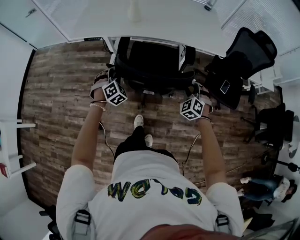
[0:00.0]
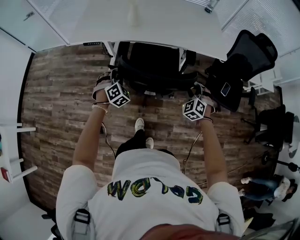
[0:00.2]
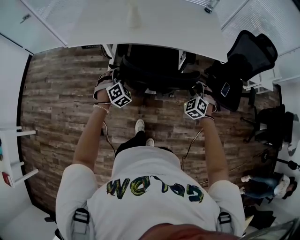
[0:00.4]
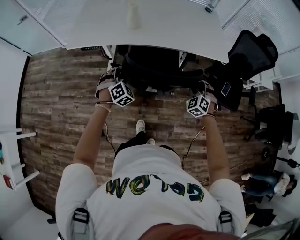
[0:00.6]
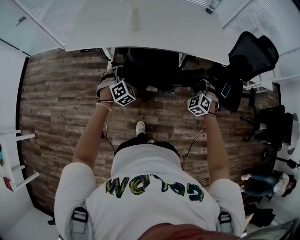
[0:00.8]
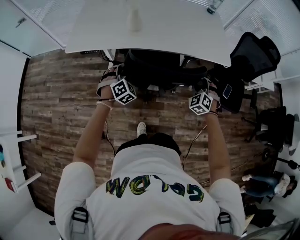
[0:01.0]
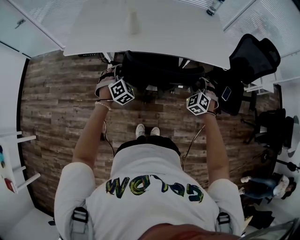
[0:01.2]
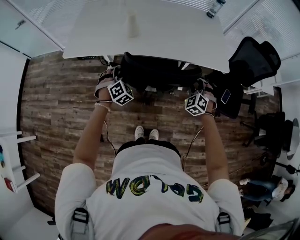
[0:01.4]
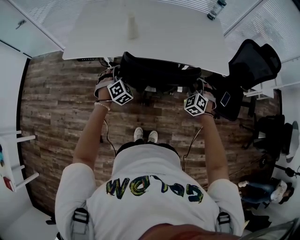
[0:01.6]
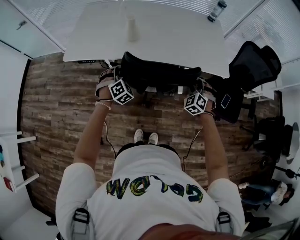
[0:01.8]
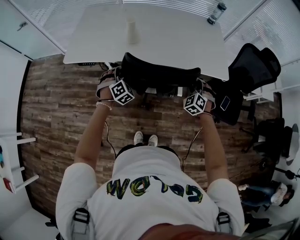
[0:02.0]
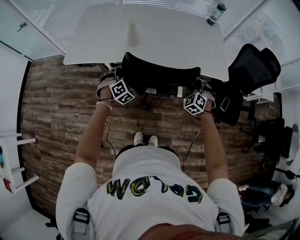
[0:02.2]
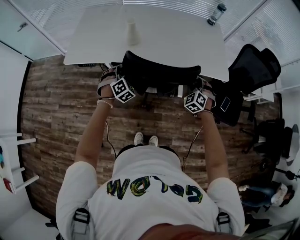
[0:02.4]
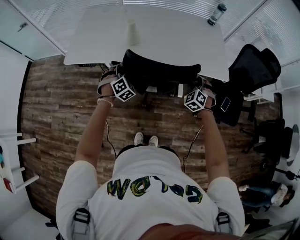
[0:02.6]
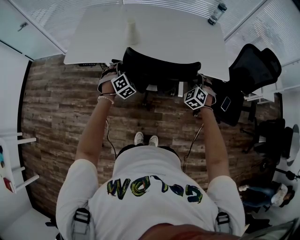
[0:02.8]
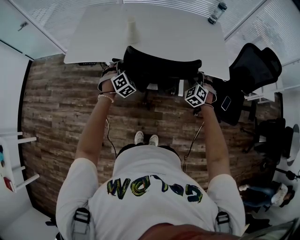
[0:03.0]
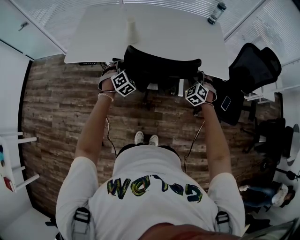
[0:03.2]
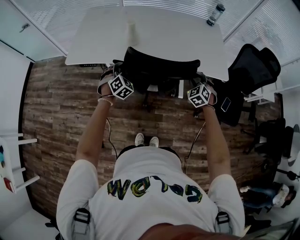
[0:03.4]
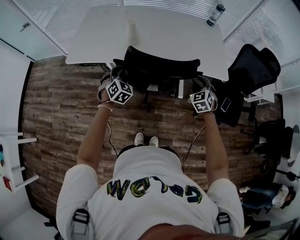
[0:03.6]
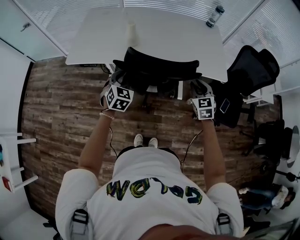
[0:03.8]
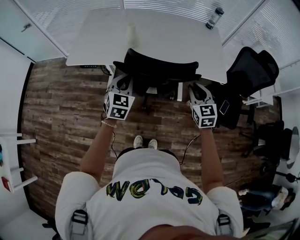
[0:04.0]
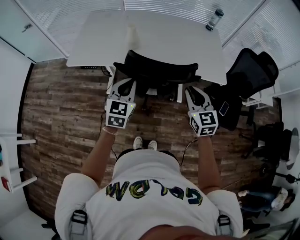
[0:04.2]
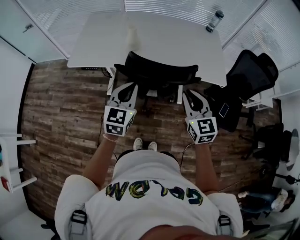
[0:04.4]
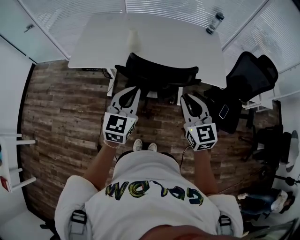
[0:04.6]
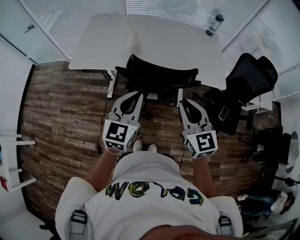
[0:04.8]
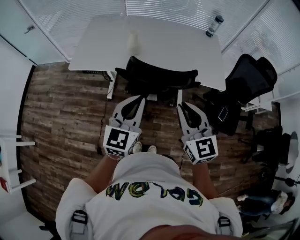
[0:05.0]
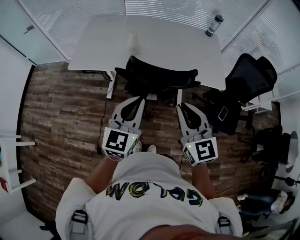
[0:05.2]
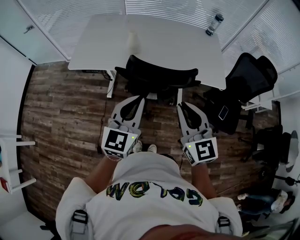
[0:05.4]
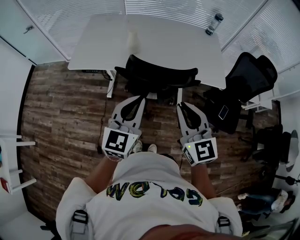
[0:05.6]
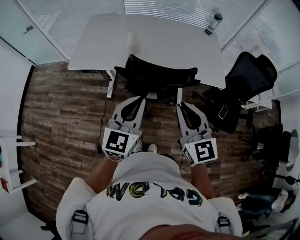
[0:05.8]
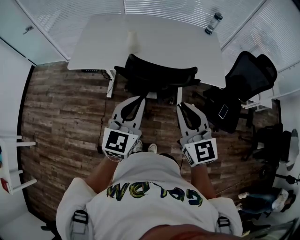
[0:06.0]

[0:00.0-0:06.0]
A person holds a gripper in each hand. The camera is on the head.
0:00.0 to 0:01.6: Both grippers travel together forward, about 20 cm.
0:01.6 to 0:03.0: Both grippers travel together forward, approximately 5 cm.
0:03.0 to 0:04.4: The right gripper is displaced upward, backward and to the left by some 25 cm, rotates around the line of its fingers by some 50 degrees, clockwise from behind, and closes up. The left gripper is displaced upward and backward by roughly 25 cm, and rotates around the line of its fingers by some 50 degrees, counterclockwise from behind.
0:04.4 to 0:06.0: The grippers both shift upward and backward by some 10 cm.

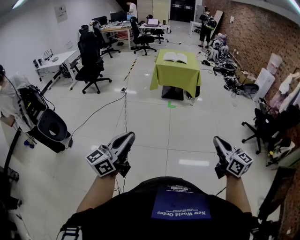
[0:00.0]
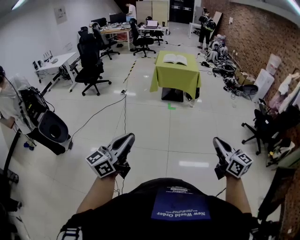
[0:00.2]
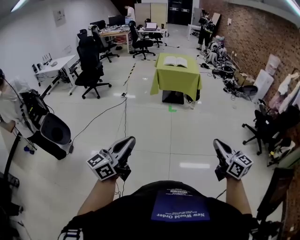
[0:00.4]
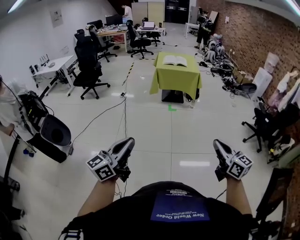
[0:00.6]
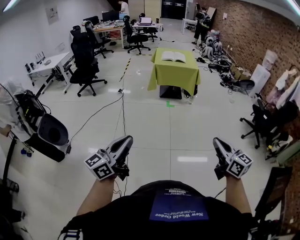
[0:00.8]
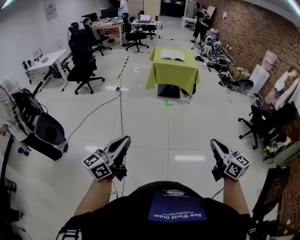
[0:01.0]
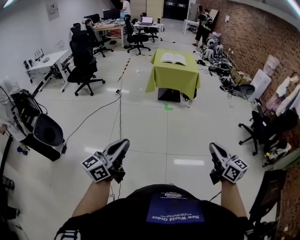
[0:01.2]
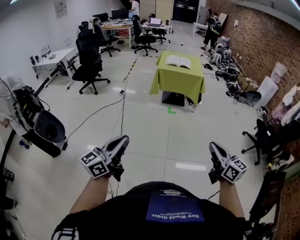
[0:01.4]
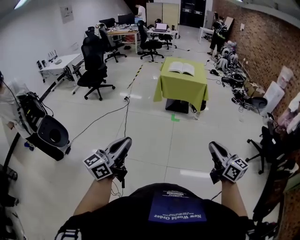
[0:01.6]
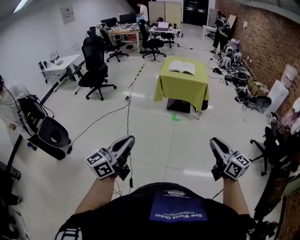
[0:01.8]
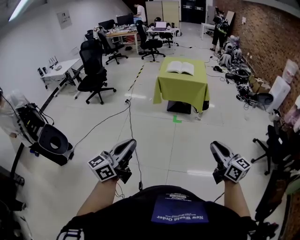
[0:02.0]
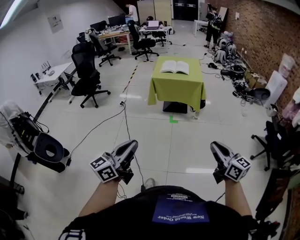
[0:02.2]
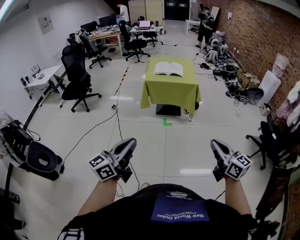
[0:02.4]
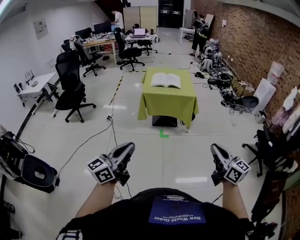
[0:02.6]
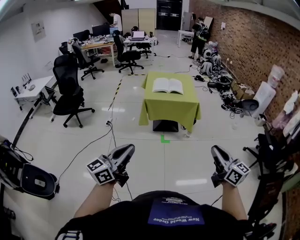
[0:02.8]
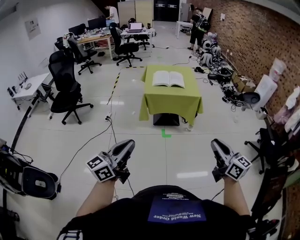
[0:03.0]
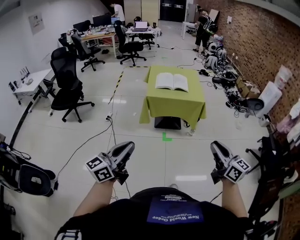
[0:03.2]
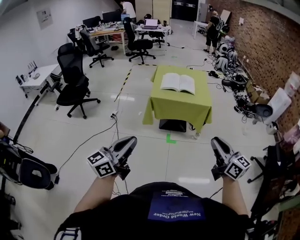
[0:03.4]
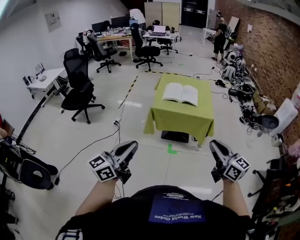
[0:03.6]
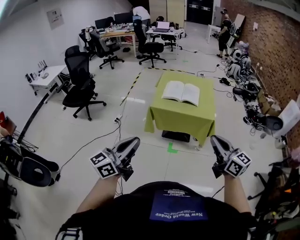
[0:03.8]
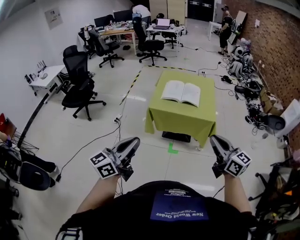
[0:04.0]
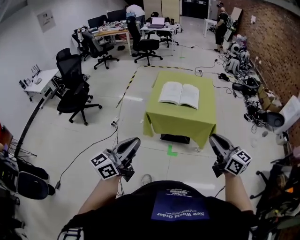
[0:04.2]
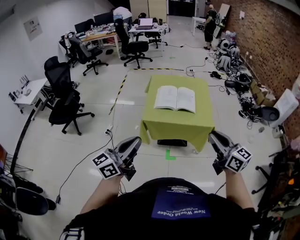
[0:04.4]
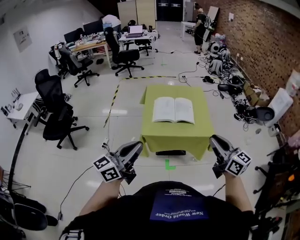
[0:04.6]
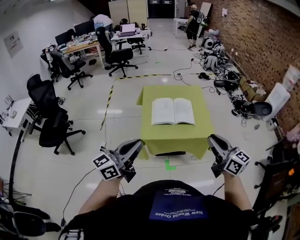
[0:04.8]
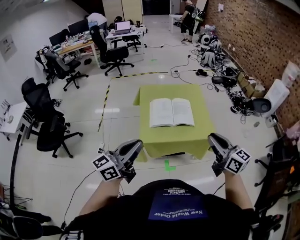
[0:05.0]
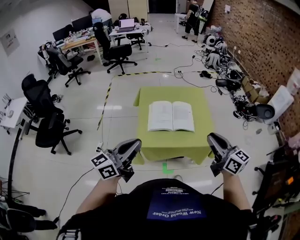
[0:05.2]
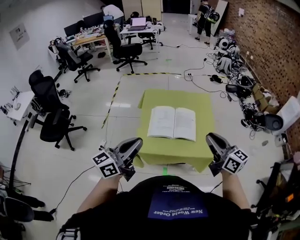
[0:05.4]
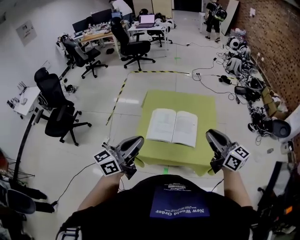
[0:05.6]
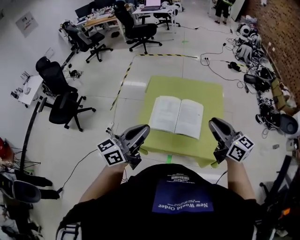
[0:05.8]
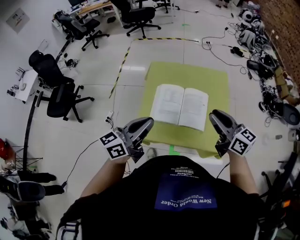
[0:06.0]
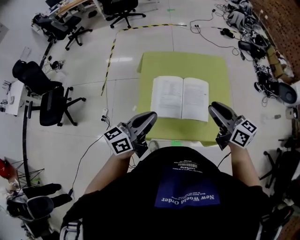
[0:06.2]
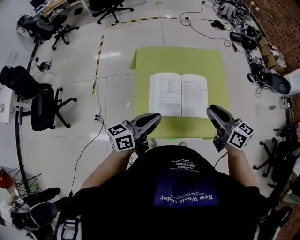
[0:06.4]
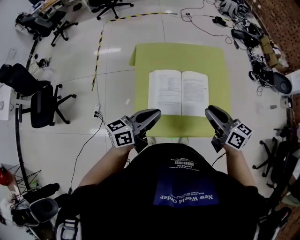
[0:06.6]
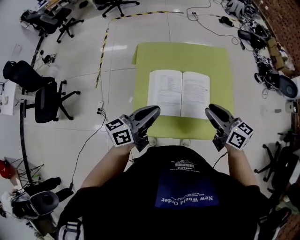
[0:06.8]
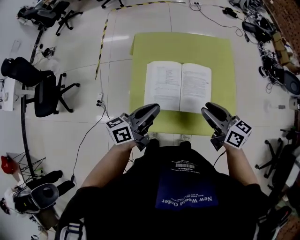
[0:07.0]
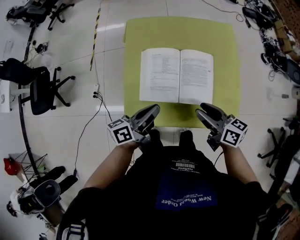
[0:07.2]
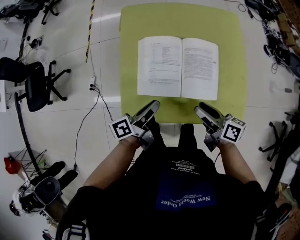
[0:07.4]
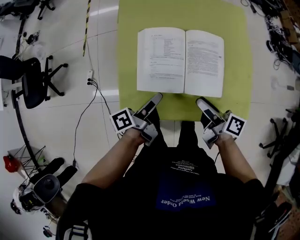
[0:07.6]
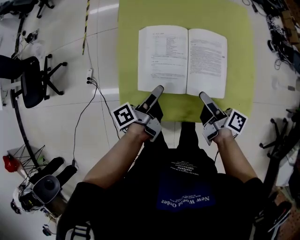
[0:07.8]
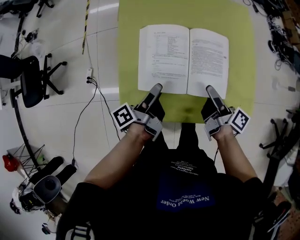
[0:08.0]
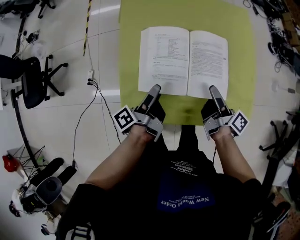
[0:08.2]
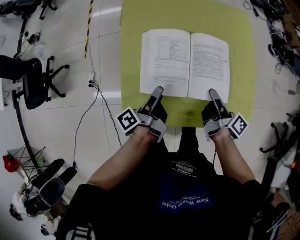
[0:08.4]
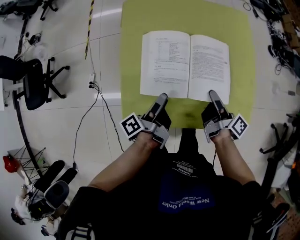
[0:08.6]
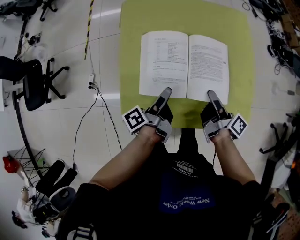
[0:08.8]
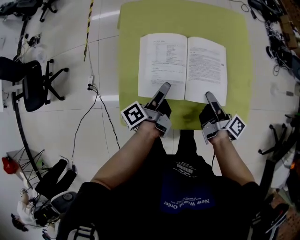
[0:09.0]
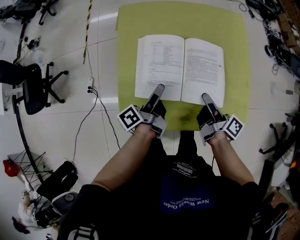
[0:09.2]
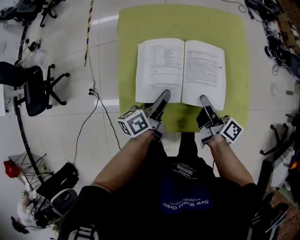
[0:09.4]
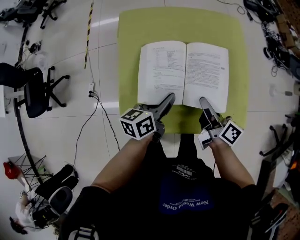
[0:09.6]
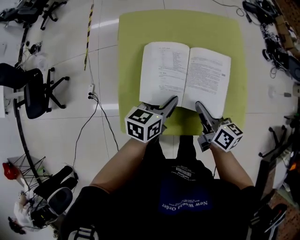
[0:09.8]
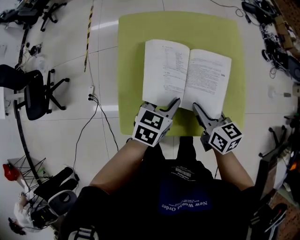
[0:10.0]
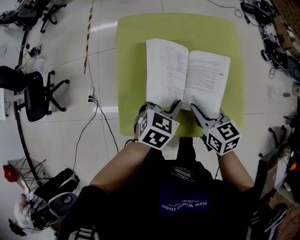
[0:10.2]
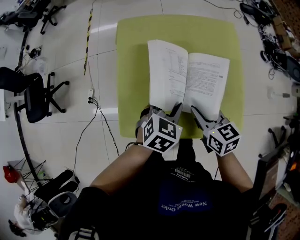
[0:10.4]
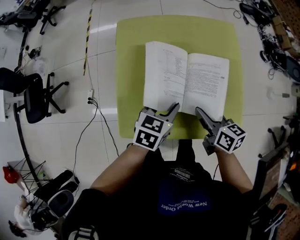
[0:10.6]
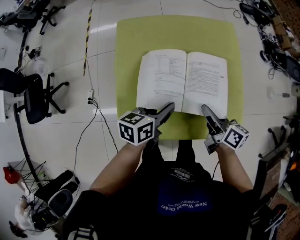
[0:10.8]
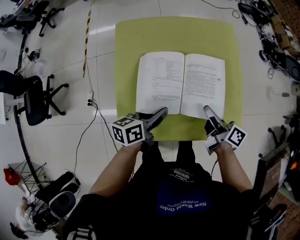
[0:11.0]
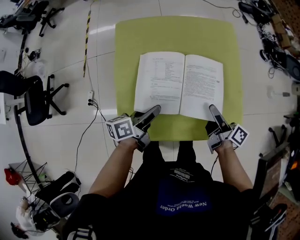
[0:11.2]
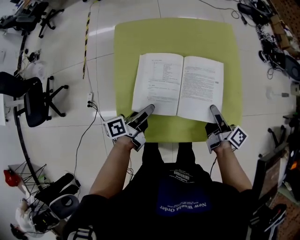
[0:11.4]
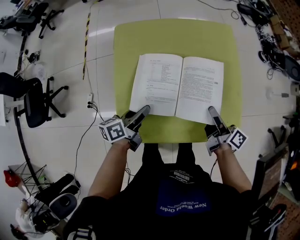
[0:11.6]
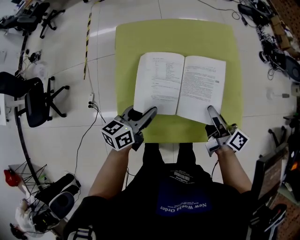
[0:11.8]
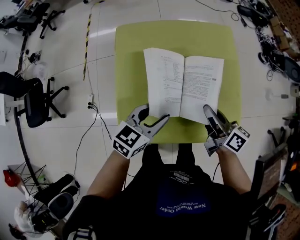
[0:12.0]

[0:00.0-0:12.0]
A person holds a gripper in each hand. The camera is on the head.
0:00.0 to 0:01.6: The grippers both shift forward by approximately 20 cm.
0:01.6 to 0:03.0: Both grippers travel together forward, some 40 cm.
0:03.0 to 0:04.4: The pair of grippers is taken forward, about 40 cm.
0:04.4 to 0:06.0: The two grippers travel together, forward, some 40 cm.
0:06.0 to 0:07.6: Both grippers travel together downward, roughly 30 cm. The left gripper twists approximately 60 degrees counterclockwise, seen from behind, and opens. The right gripper twists some 50 degrees clockwise, seen from behind, and opens.
0:07.6 to 0:09.0: The right gripper changes place by some 5 cm, rotates some 30 degrees, and closes up, while the left gripper travels forward by approximately 5 cm.
0:09.0 to 0:10.4: The left gripper goes roughly 10 cm to the right and upward, twists some 100 degrees clockwise, seen from behind, and closes, while the right gripper travels upward by approximately 5 cm, and rotates around the line of its fingers by some 70 degrees, counterclockwise from behind.
0:10.4 to 0:12.0: The right gripper shifts some 5 cm to the right, rotates some 40 degrees, and opens and closes again. The left gripper reaches roughly 10 cm to the left, then returns, and rotates about 20 degrees.

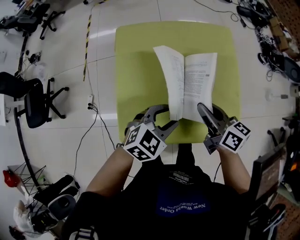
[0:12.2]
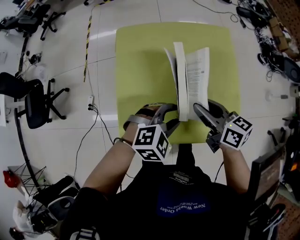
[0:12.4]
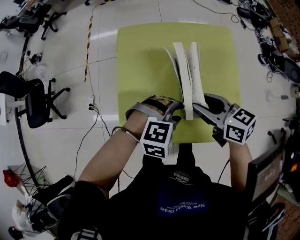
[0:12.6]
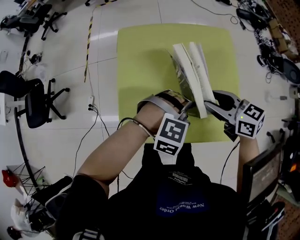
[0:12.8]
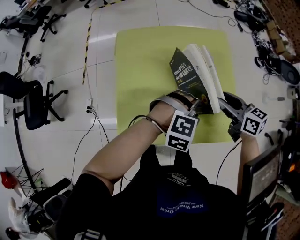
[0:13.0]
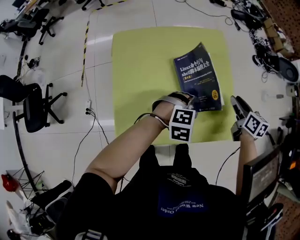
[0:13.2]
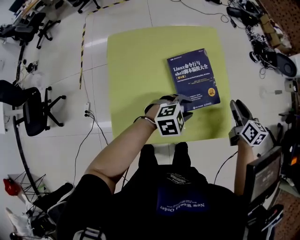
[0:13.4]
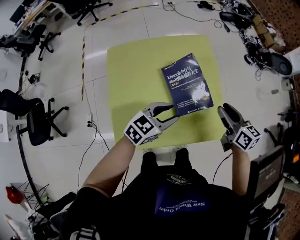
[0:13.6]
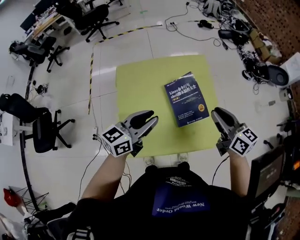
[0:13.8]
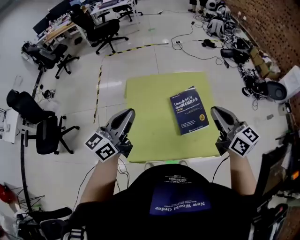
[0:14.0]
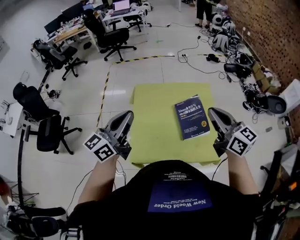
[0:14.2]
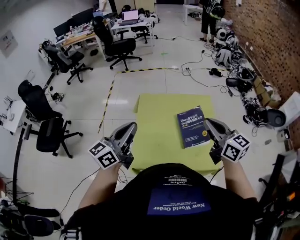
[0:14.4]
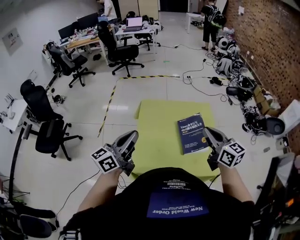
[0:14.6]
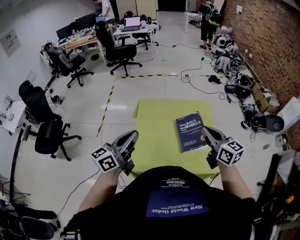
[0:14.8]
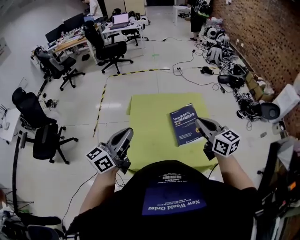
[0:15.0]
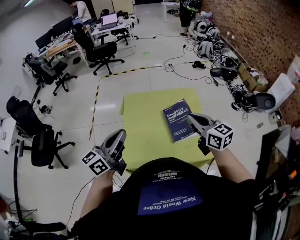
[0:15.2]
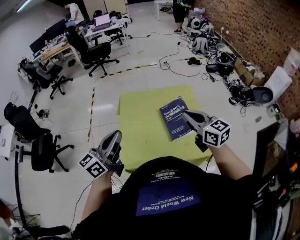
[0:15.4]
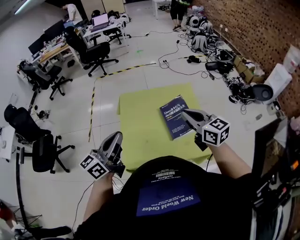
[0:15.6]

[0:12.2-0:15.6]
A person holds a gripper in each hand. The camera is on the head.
0:12.2 to 0:13.8: The left gripper shifts roughly 15 cm upward, and turns by roughly 40 degrees, while the right gripper ends up about 20 cm from where it was, and rotates some 20 degrees.
0:13.8 to 0:15.6: The left gripper moves to the left, upward and backward, about 20 cm, swivels some 20 degrees, and closes up. The right gripper goes about 15 cm to the left and upward.

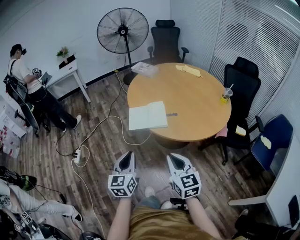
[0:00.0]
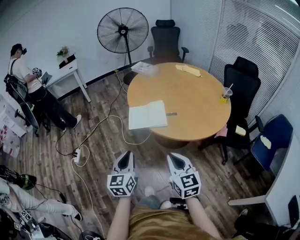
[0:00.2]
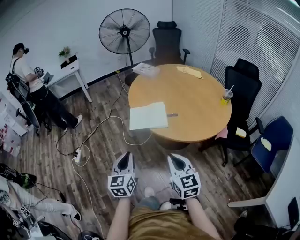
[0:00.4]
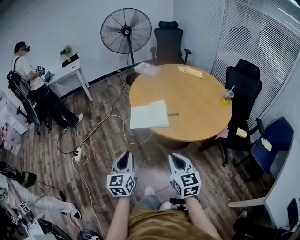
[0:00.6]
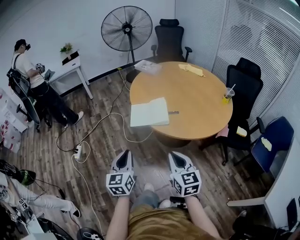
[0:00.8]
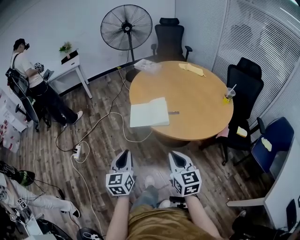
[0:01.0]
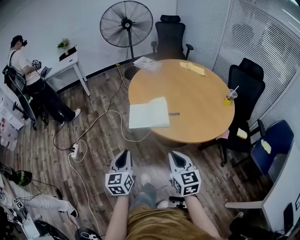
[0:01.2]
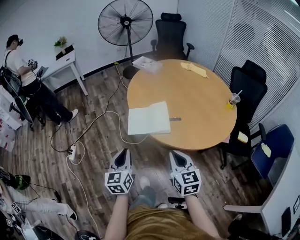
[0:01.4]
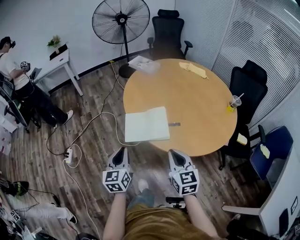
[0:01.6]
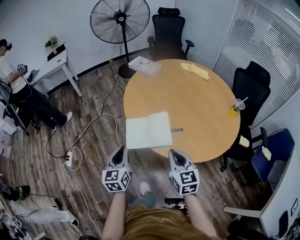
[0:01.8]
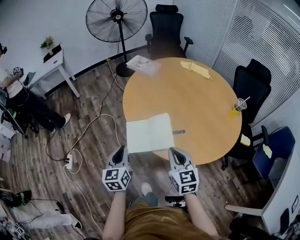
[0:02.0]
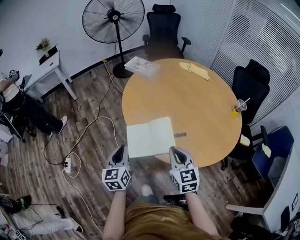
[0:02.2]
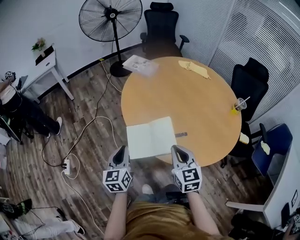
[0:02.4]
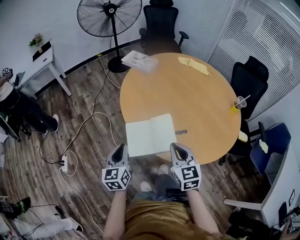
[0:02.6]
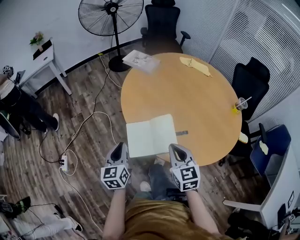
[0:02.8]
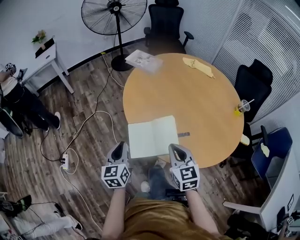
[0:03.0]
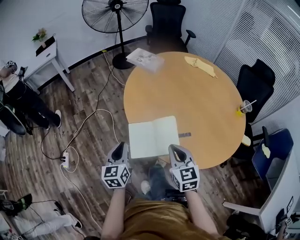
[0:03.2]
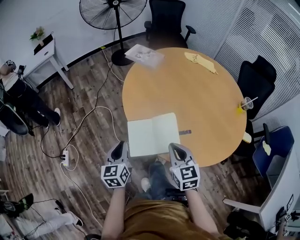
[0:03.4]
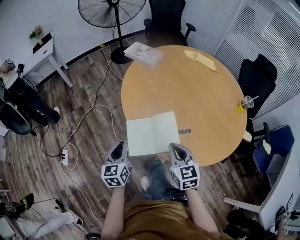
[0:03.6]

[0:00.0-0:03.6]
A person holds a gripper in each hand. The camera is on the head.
0:00.0 to 0:01.8: Both grippers move forward, approximately 20 cm.
0:01.8 to 0:03.6: The grippers both shift forward and downward by about 10 cm.
